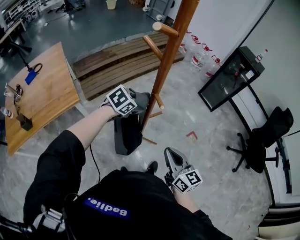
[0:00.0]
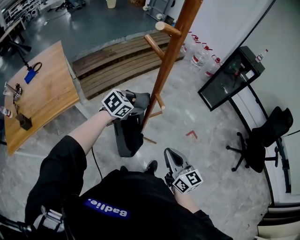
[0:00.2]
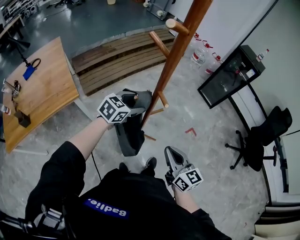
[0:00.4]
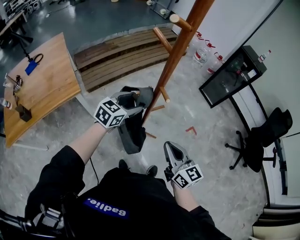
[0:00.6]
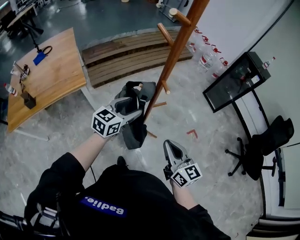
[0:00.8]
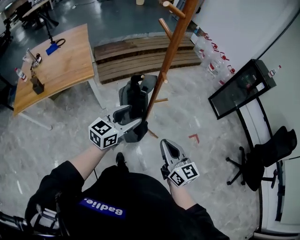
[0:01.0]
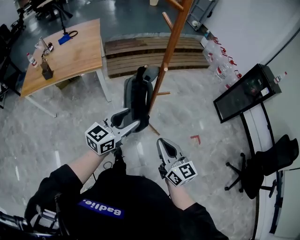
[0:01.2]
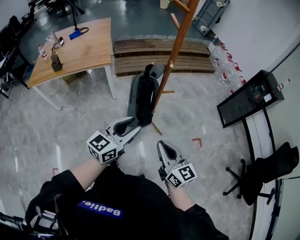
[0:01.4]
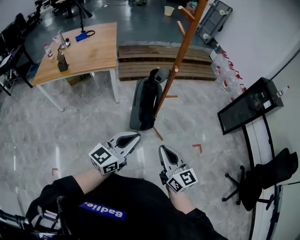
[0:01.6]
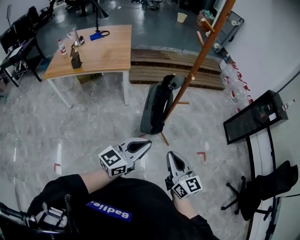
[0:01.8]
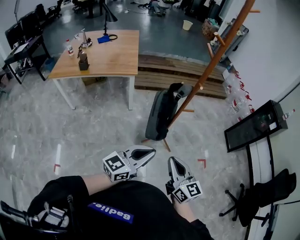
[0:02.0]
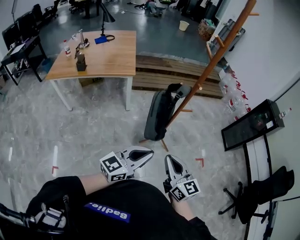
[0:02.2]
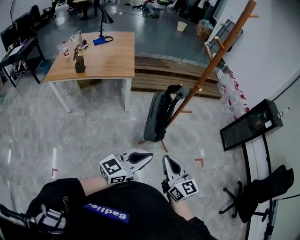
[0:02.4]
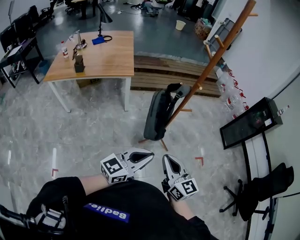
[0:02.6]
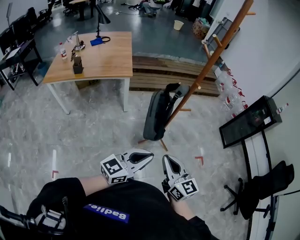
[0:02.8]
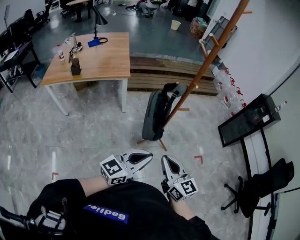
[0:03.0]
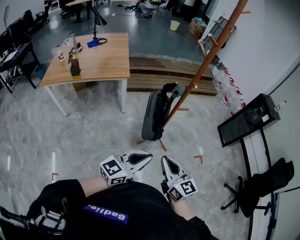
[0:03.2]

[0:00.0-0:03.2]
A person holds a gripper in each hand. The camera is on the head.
0:00.0 to 0:01.6: The left gripper moves about 40 cm, points its fingers approximately 50 degrees further upward, and closes; the right gripper moves roughly 20 cm, and turns by some 30 degrees.
0:01.6 to 0:03.2: The right gripper heads to the left and backward, covering roughly 10 cm. Meanwhile the left gripper is displaced backward by some 10 cm.

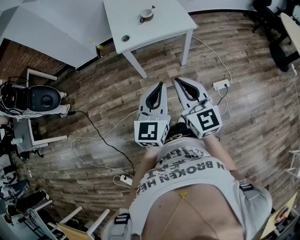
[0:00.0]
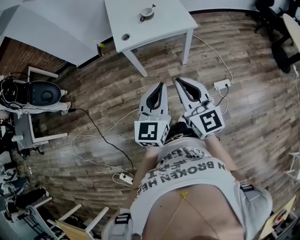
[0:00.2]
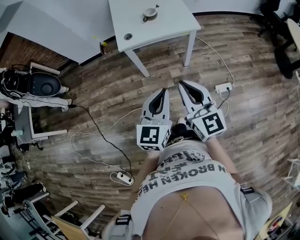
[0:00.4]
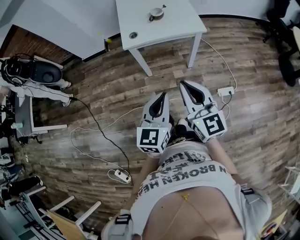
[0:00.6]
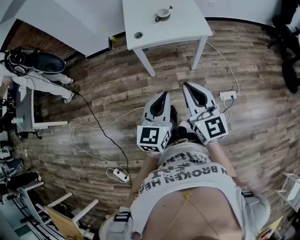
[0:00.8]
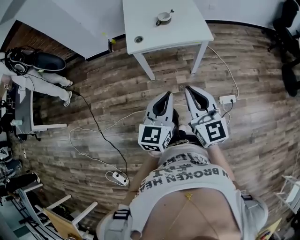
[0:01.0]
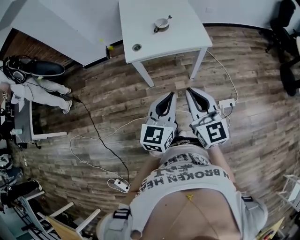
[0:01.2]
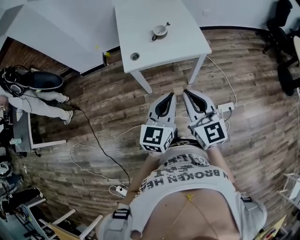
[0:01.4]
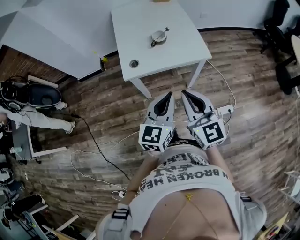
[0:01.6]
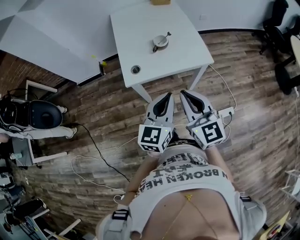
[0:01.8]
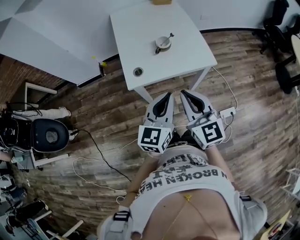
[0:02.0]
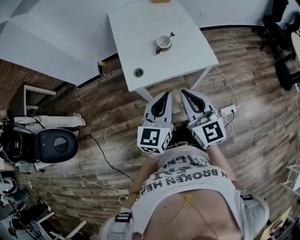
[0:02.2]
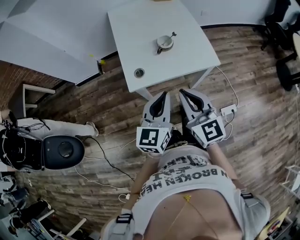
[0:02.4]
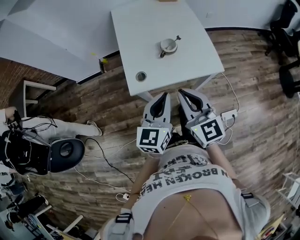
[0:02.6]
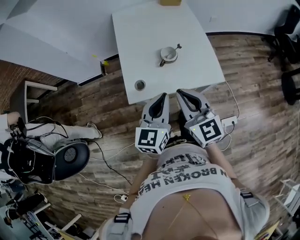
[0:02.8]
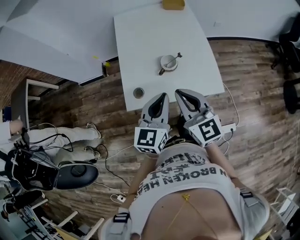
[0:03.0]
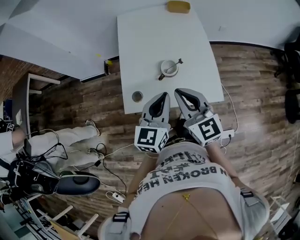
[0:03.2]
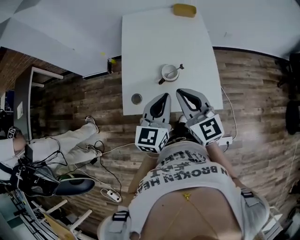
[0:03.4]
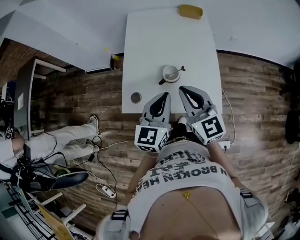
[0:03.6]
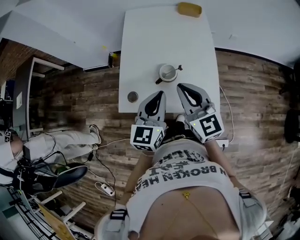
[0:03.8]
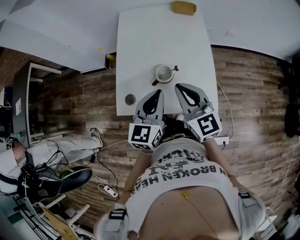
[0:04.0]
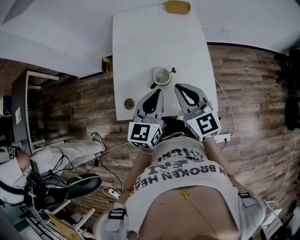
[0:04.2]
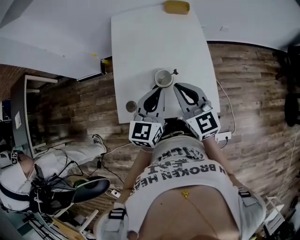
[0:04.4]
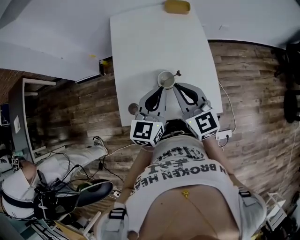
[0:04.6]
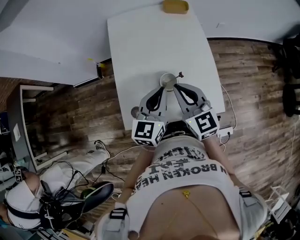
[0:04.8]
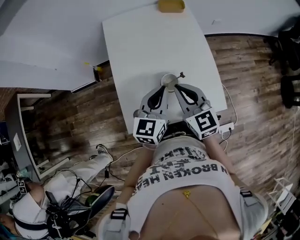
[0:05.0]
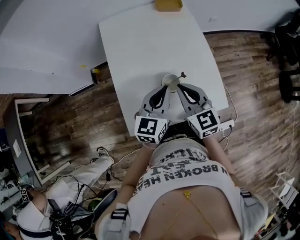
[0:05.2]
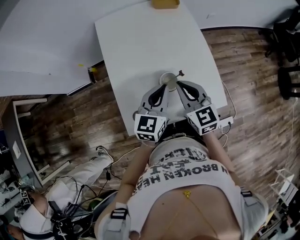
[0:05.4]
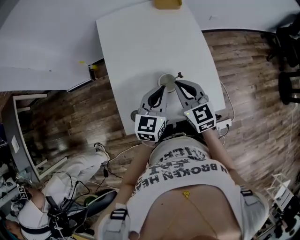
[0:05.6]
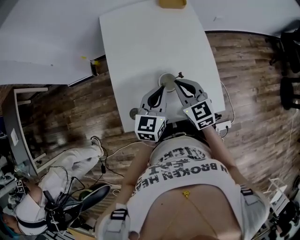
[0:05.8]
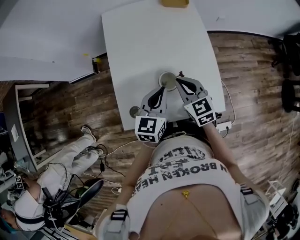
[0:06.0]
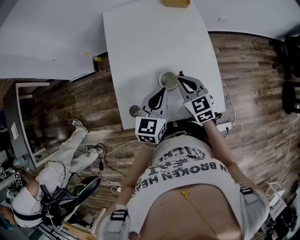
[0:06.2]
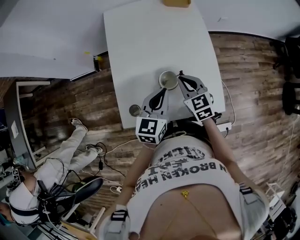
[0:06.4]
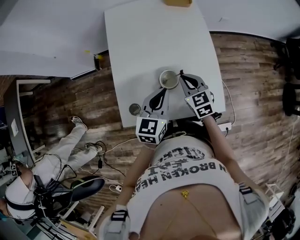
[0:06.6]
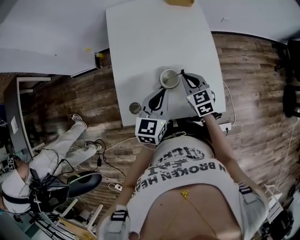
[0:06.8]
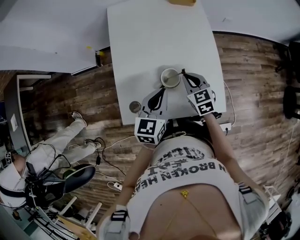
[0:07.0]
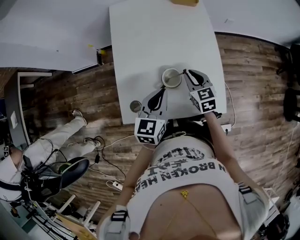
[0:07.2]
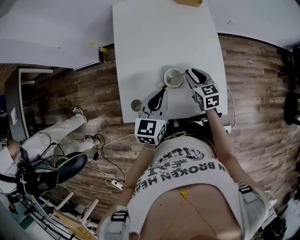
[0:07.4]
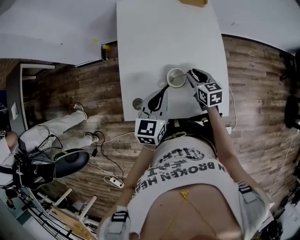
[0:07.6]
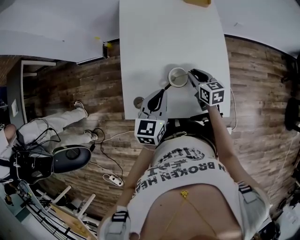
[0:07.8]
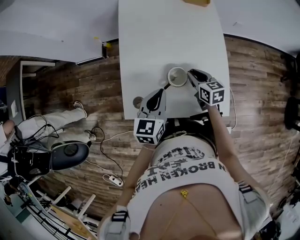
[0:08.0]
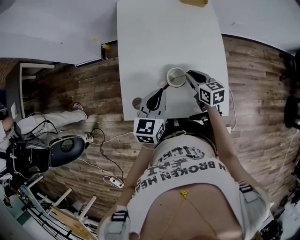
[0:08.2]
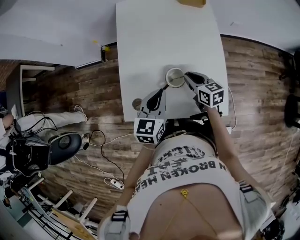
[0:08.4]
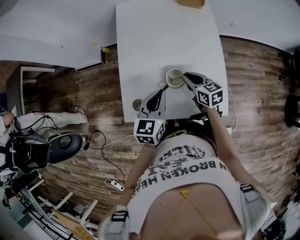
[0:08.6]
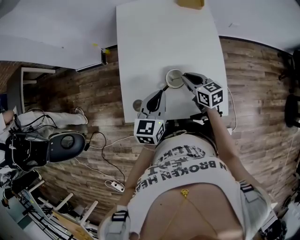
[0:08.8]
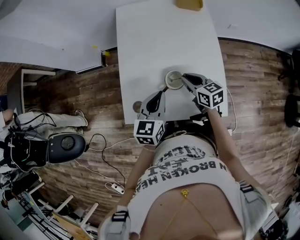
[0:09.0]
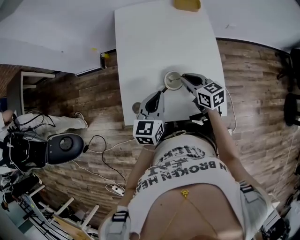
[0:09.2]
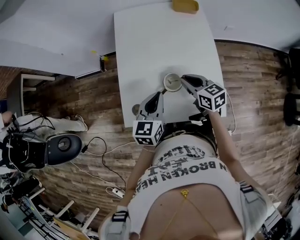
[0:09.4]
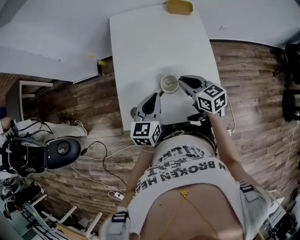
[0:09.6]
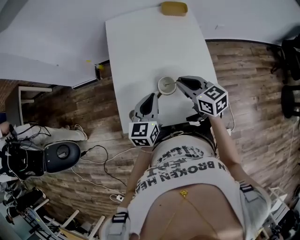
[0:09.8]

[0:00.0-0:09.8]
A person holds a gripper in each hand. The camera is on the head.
0:00.0 to 0:01.4: The grippers both shift forward by roughly 15 cm.
0:01.4 to 0:02.8: Both grippers travel together forward, some 25 cm.
0:02.8 to 0:04.2: The grippers both shift forward and to the right by approximately 20 cm.
0:04.2 to 0:05.6: The left gripper goes roughly 10 cm forward and downward, while the right gripper moves downward, forward and to the left, some 10 cm.
0:05.6 to 0:07.0: The right gripper moves downward, some 10 cm.
0:07.0 to 0:08.4: The right gripper swivels about 30 degrees.
0:08.4 to 0:09.8: The right gripper shifts about 10 cm upward.

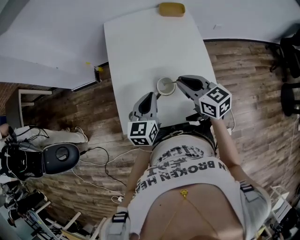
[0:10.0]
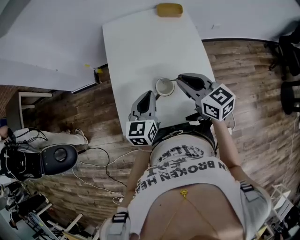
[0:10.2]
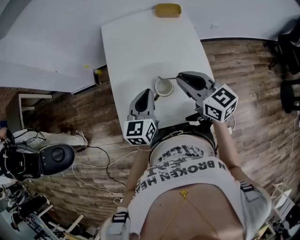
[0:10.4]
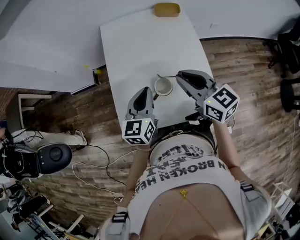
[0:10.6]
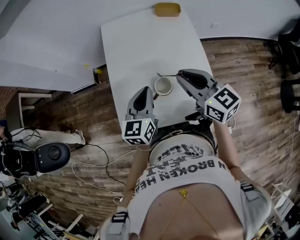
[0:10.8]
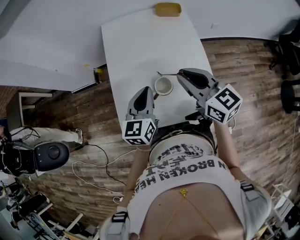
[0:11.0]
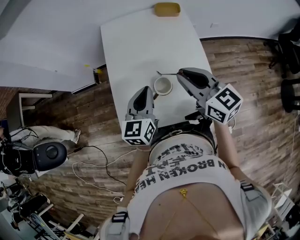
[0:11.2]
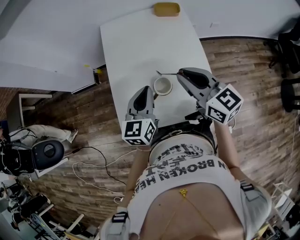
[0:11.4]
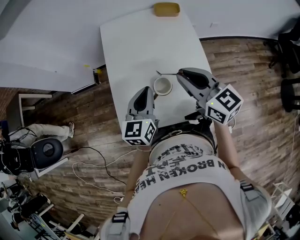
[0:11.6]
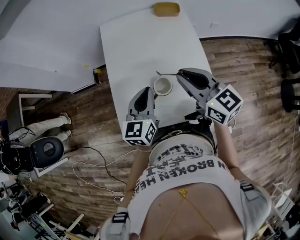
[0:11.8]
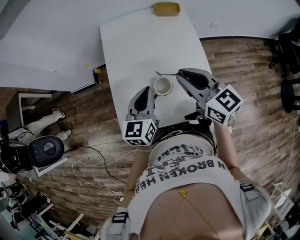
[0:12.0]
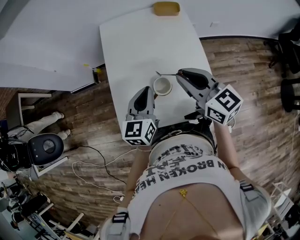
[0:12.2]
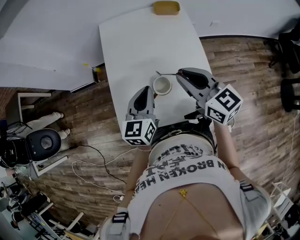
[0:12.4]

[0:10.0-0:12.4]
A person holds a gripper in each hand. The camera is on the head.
0:10.0 to 0:11.2: The left gripper moves upward, approximately 5 cm; the right gripper is displaced upward by approximately 10 cm.
0:11.2 to 0:12.4: Both grippers stay about where they are.

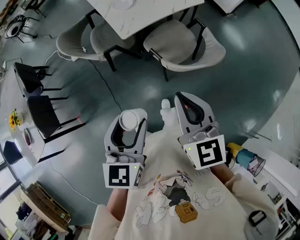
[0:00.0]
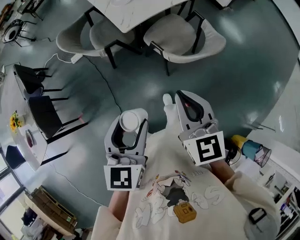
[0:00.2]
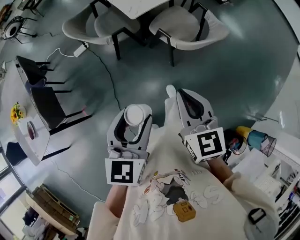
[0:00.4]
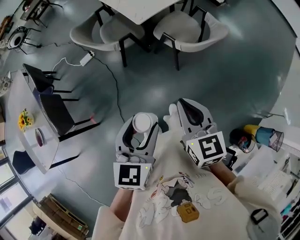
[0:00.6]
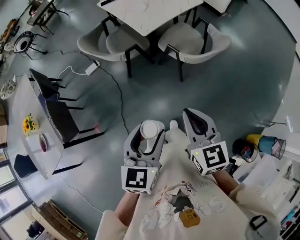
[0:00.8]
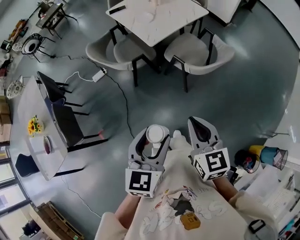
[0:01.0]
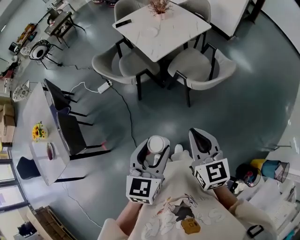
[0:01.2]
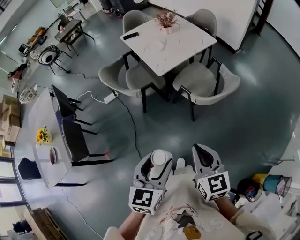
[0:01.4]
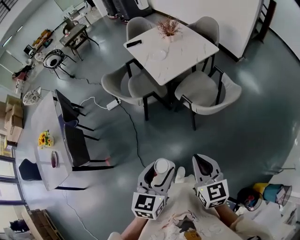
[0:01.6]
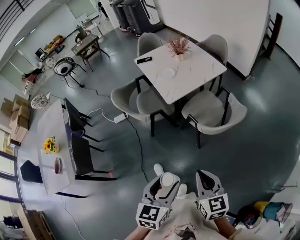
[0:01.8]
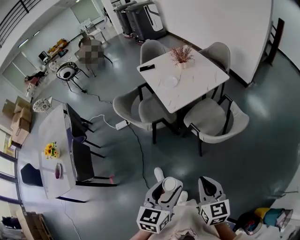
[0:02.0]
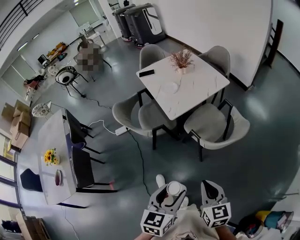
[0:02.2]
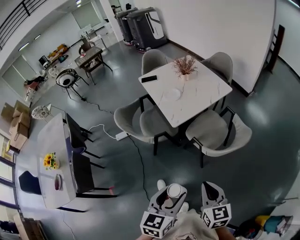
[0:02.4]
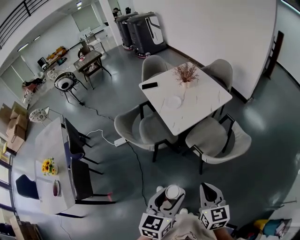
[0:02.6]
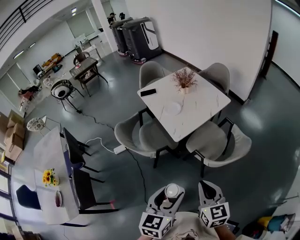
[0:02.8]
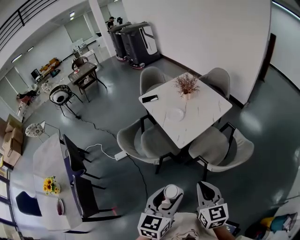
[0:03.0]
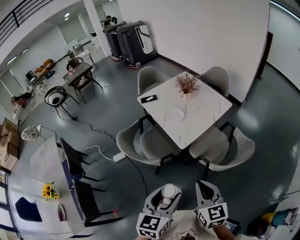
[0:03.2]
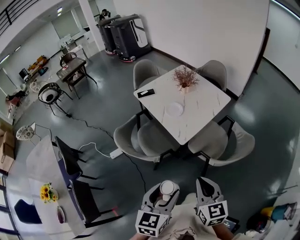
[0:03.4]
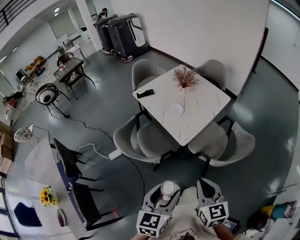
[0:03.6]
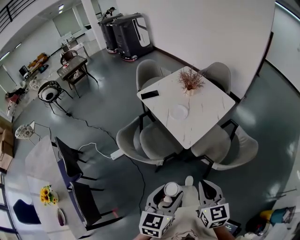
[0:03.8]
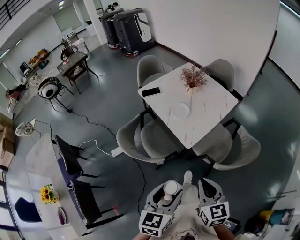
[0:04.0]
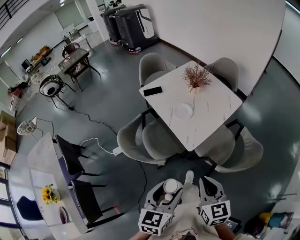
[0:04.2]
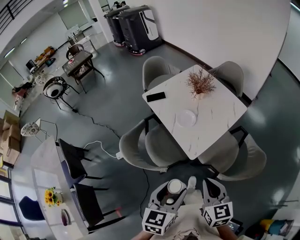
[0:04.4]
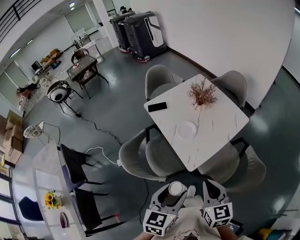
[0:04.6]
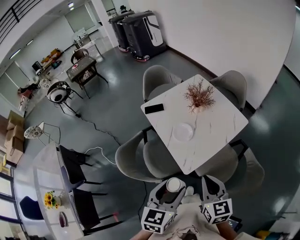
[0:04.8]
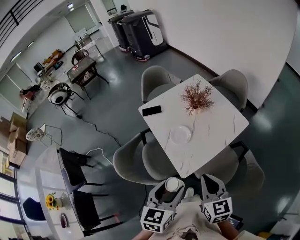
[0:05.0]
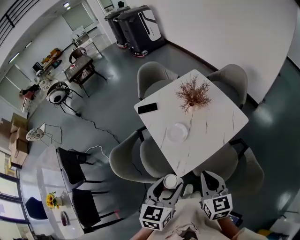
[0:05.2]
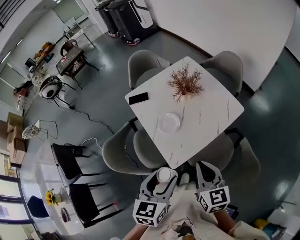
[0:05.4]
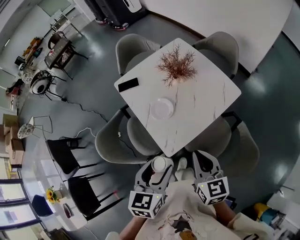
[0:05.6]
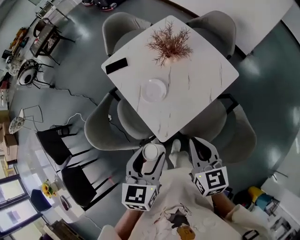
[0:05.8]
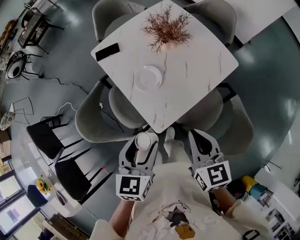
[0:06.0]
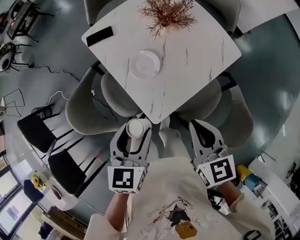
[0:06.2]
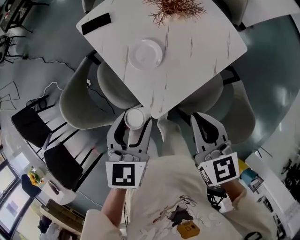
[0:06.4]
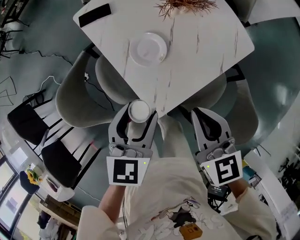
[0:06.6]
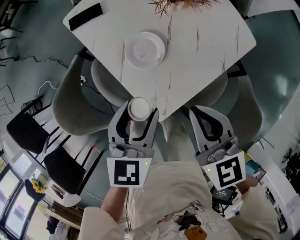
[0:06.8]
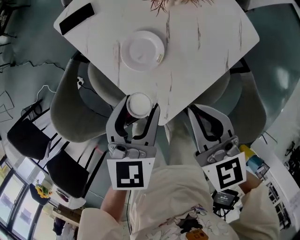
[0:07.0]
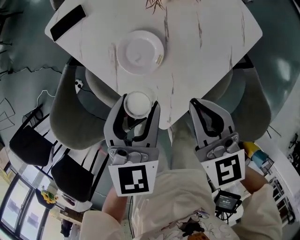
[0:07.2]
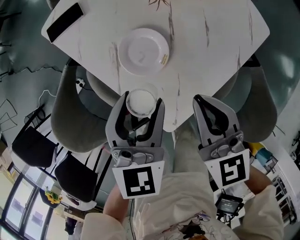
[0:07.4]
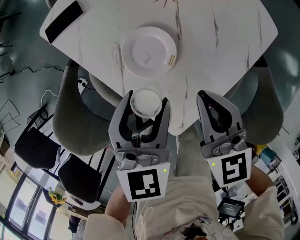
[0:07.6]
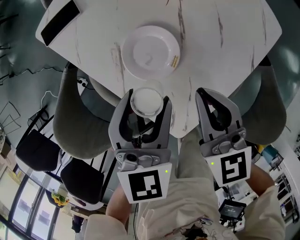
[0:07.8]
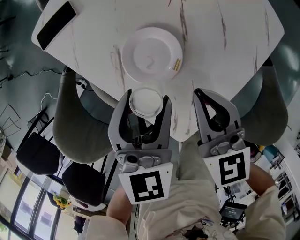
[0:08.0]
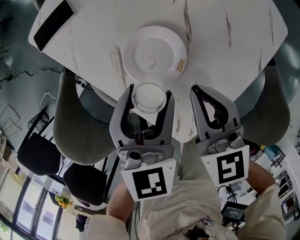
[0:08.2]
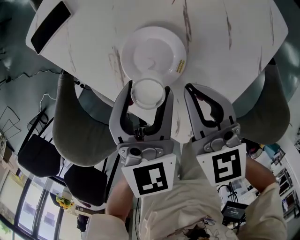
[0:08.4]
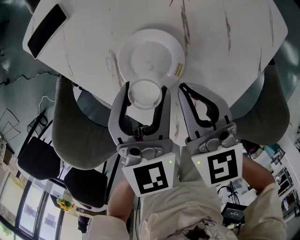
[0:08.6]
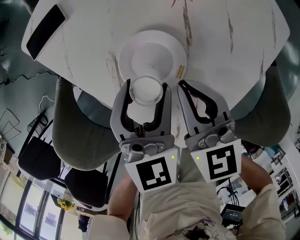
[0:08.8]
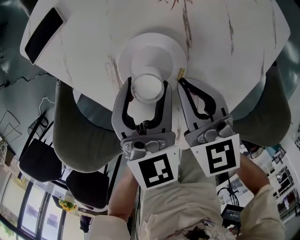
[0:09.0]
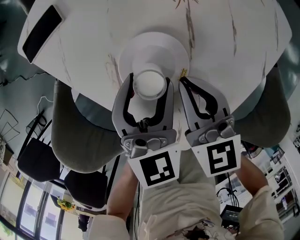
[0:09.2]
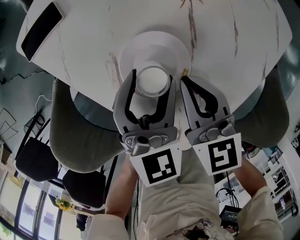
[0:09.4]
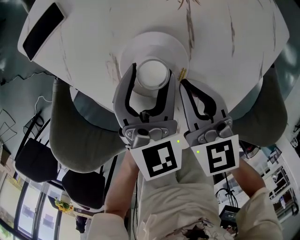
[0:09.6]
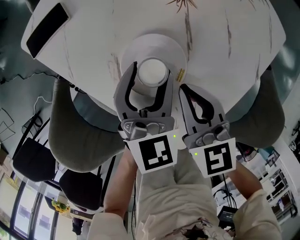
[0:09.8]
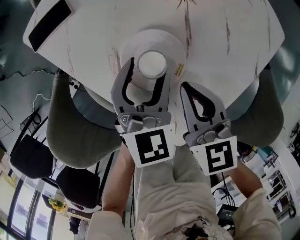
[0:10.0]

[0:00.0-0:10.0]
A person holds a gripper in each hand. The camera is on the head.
0:00.0 to 0:01.4: The two grippers go some 15 cm backward and to the left.
0:01.4 to 0:02.8: The grippers both shift forward by approximately 20 cm.
0:02.8 to 0:04.2: The two grippers go some 20 cm forward and to the left.
0:04.2 to 0:05.8: Both grippers travel together forward and to the right, some 25 cm.
0:05.8 to 0:07.2: The left gripper shifts roughly 25 cm forward and downward, while the right gripper moves forward, downward and to the left, about 20 cm.
0:07.2 to 0:08.6: The right gripper goes about 15 cm downward, forward and to the left. Meanwhile the left gripper travels downward and forward by roughly 10 cm.
0:08.6 to 0:10.0: The left gripper changes place by about 5 cm.
